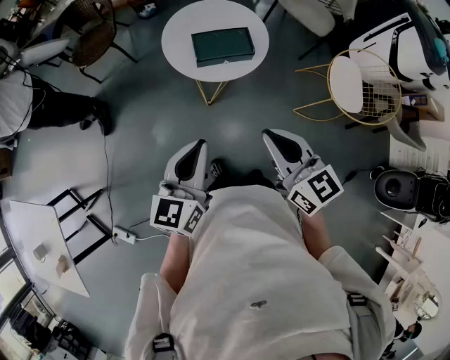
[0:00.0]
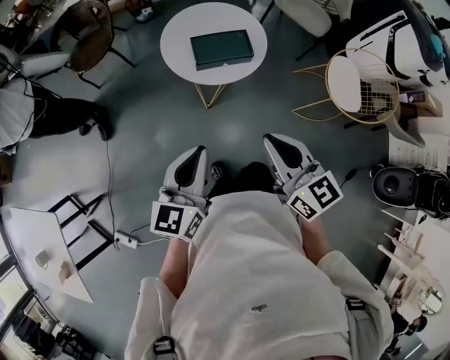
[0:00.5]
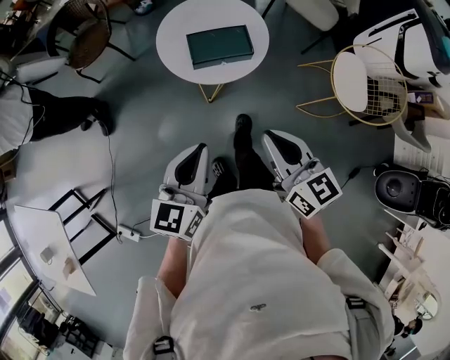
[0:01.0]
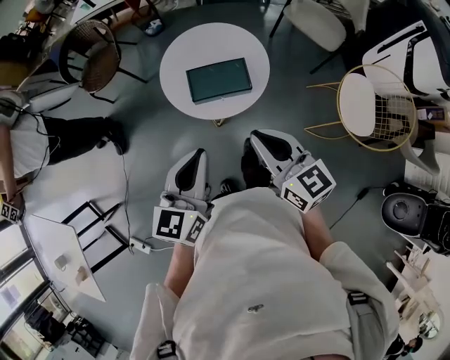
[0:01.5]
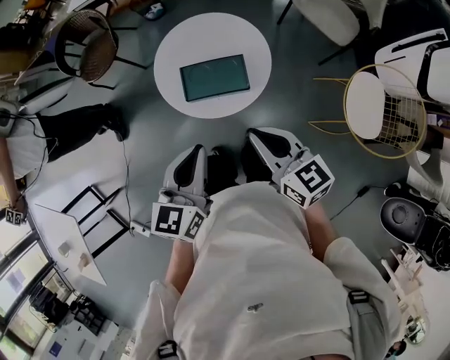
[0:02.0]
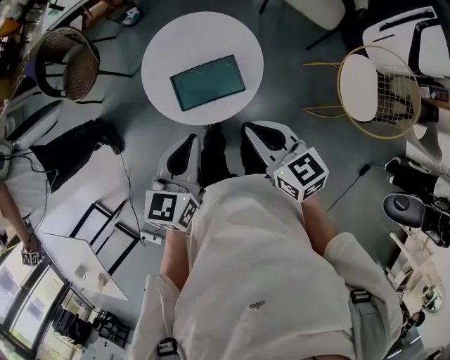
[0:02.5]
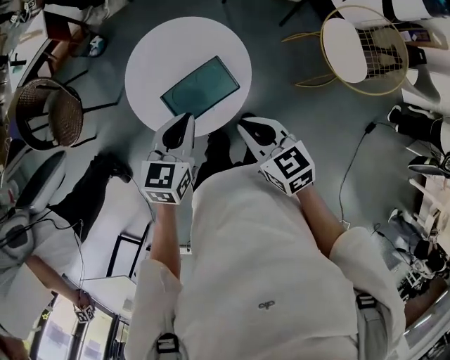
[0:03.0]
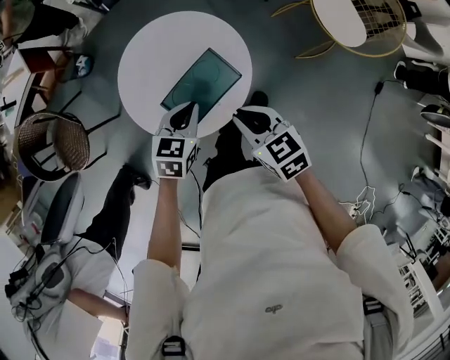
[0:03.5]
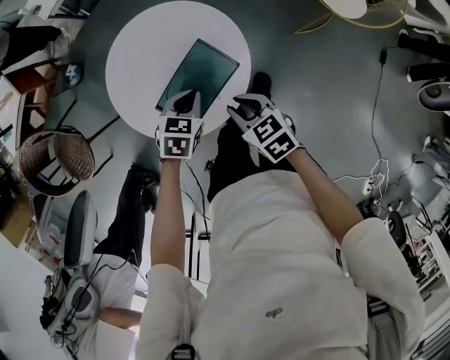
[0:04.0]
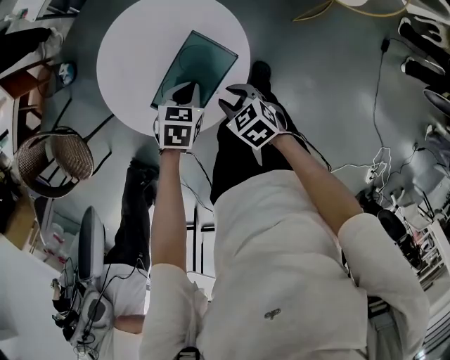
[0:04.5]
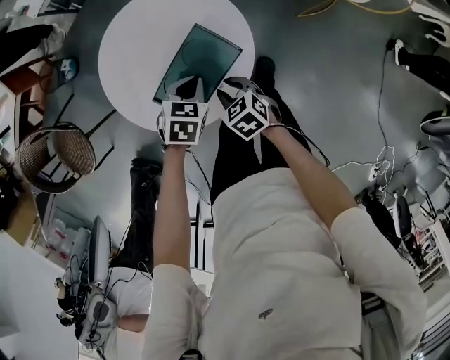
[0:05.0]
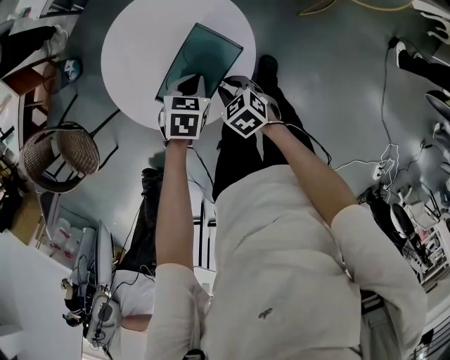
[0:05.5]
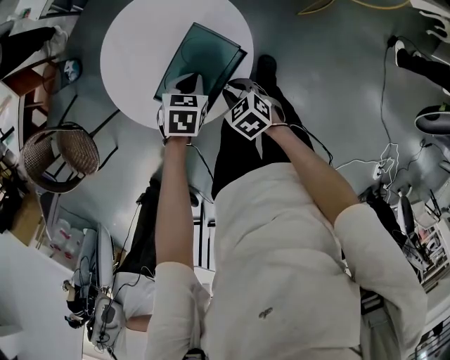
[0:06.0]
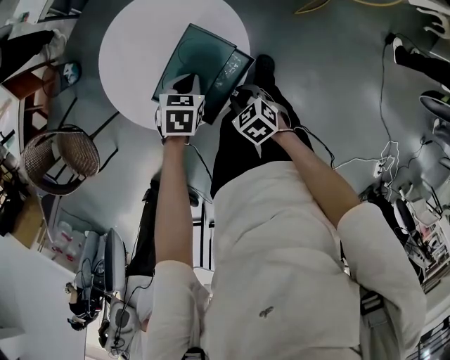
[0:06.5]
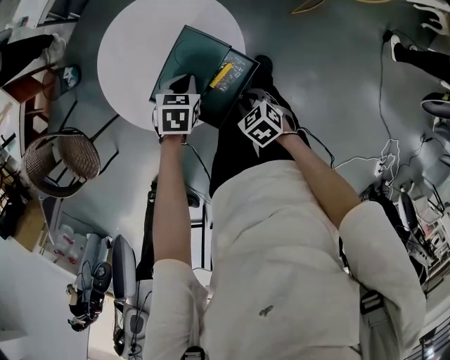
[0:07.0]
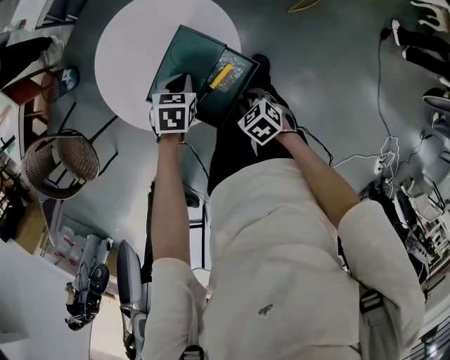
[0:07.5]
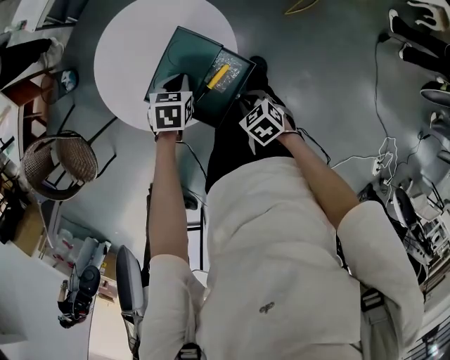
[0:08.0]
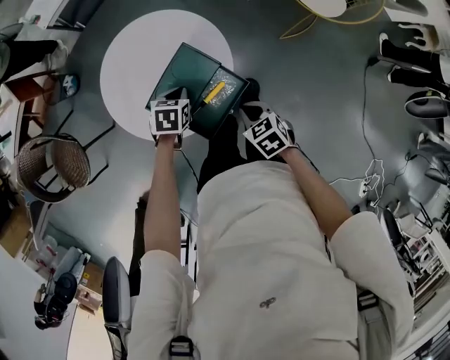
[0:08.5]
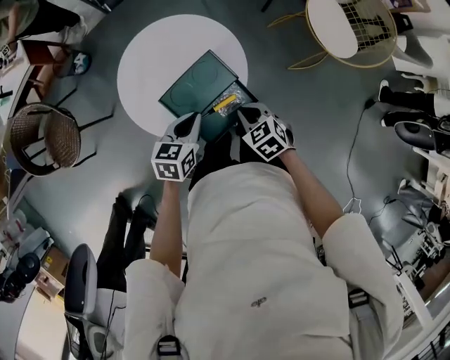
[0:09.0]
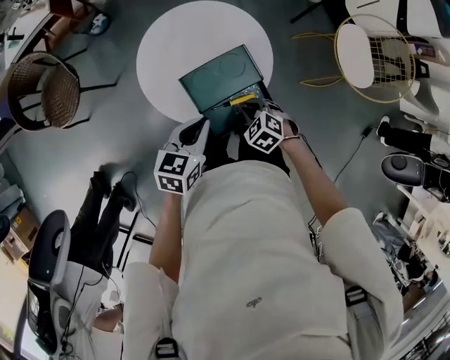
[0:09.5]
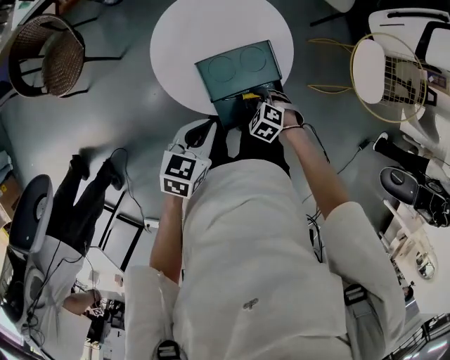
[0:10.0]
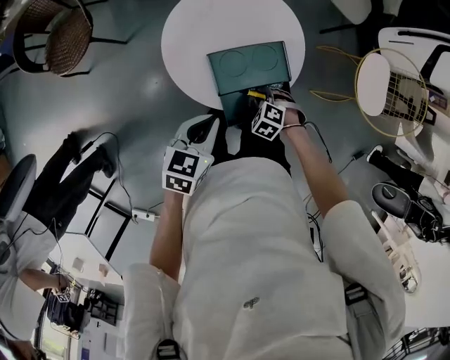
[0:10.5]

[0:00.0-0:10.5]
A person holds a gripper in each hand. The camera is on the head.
0:00.0 to 0:02.0: Both grippers travel together forward and to the right, roughly 20 cm.
0:02.0 to 0:04.0: The two grippers go about 25 cm downward. The left gripper points its fingers roughly 40 degrees further downward; the right gripper points its fingers approximately 30 degrees further downward, and opens its fingers.
0:04.0 to 0:06.5: The right gripper travels downward by approximately 10 cm.
0:06.5 to 0:08.5: The right gripper is displaced to the right and upward by some 10 cm.
0:08.5 to 0:10.5: The left gripper ends up approximately 20 cm from where it was, and turns by approximately 40 degrees; the right gripper shifts by about 15 cm, and rolls counterclockwise, seen from behind, by about 70 degrees.

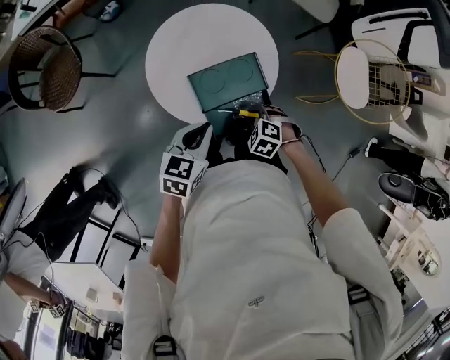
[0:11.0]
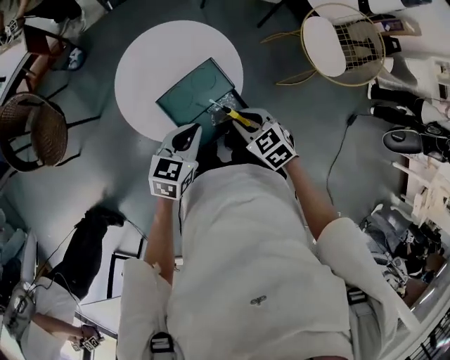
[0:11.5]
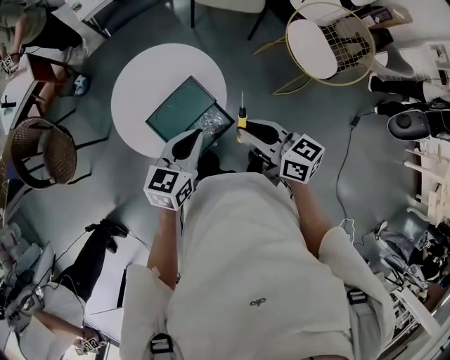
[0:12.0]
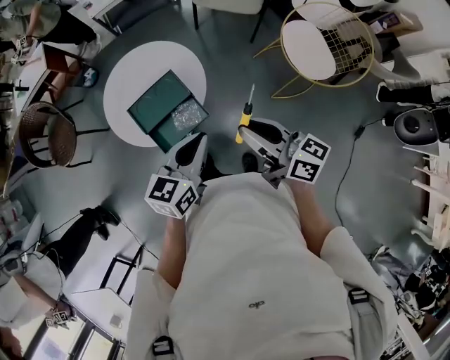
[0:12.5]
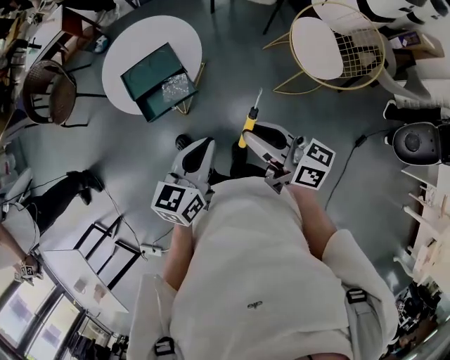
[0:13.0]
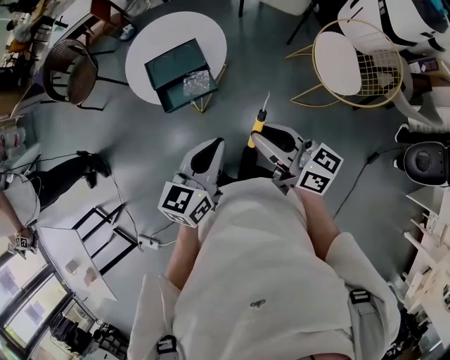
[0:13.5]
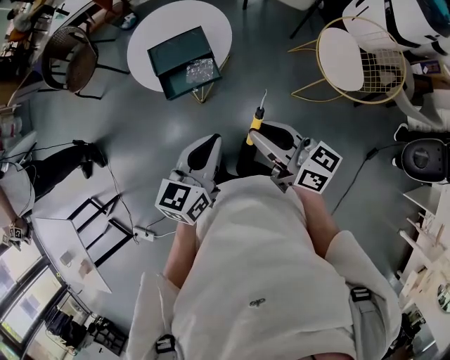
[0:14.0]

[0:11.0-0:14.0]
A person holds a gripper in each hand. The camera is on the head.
0:11.0 to 0:12.5: The left gripper ends up roughly 30 cm from where it was; the right gripper shifts approximately 30 cm upward, and tips its fingers upward by roughly 80 degrees.
0:12.5 to 0:14.0: The two grippers go about 15 cm backward.

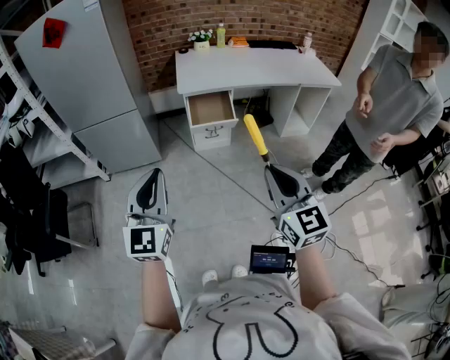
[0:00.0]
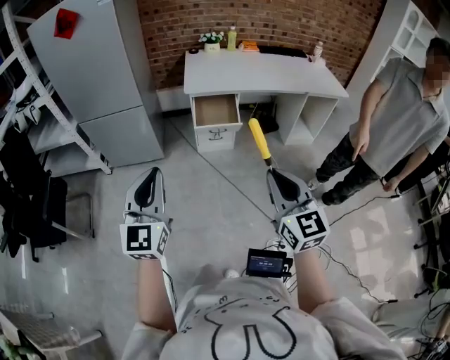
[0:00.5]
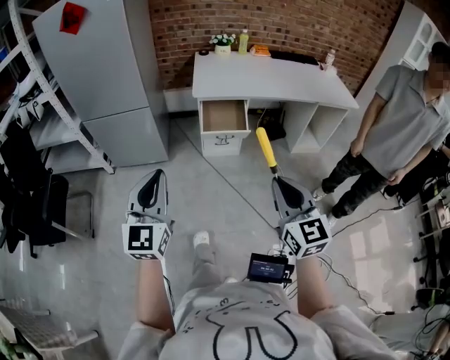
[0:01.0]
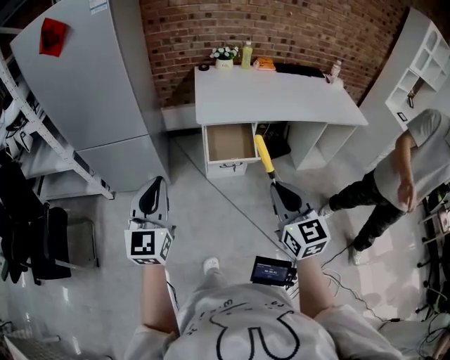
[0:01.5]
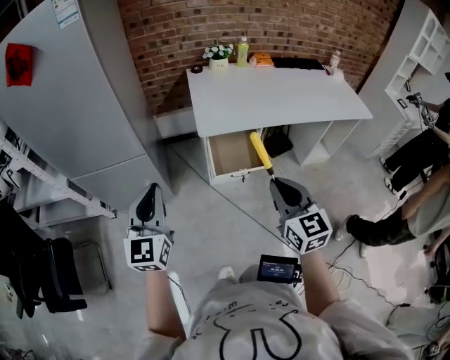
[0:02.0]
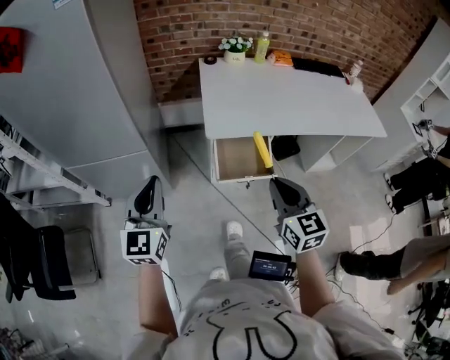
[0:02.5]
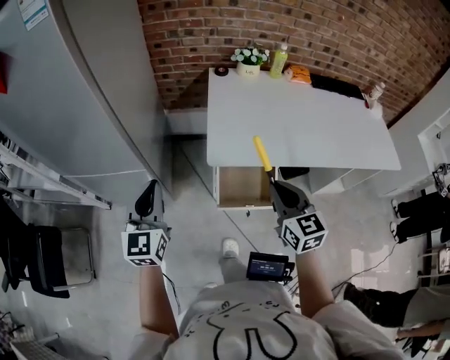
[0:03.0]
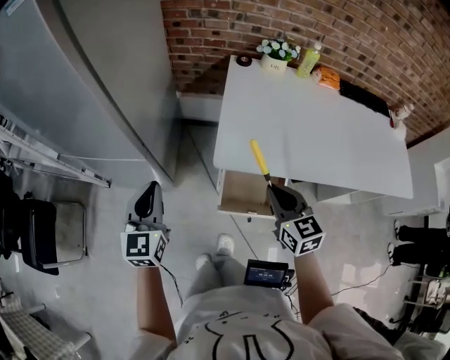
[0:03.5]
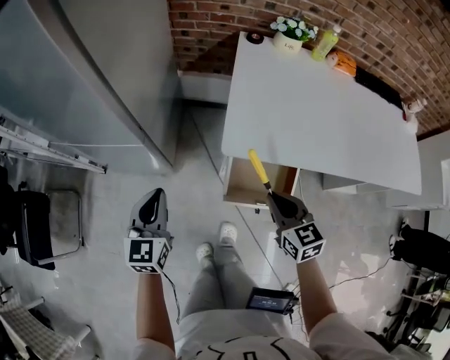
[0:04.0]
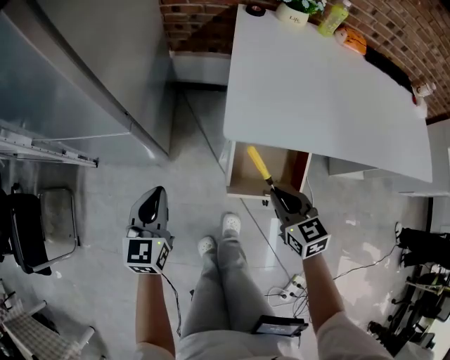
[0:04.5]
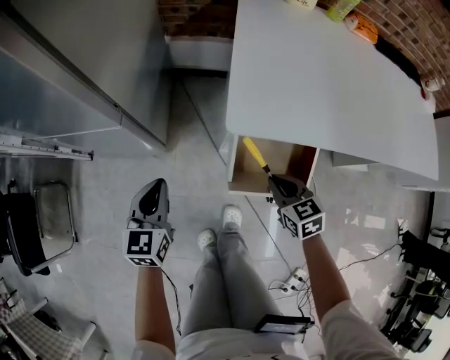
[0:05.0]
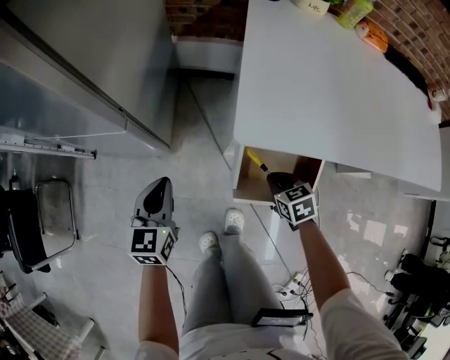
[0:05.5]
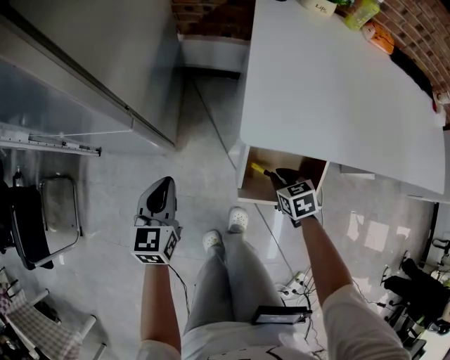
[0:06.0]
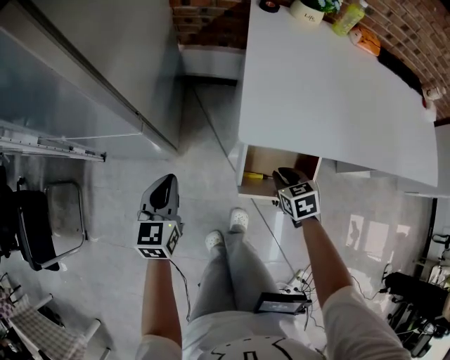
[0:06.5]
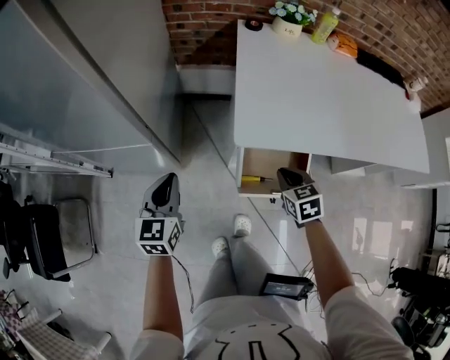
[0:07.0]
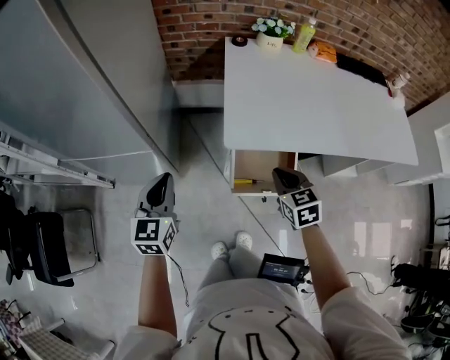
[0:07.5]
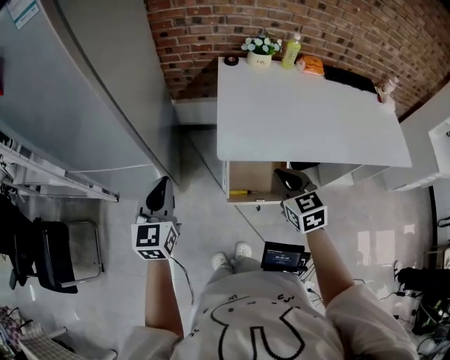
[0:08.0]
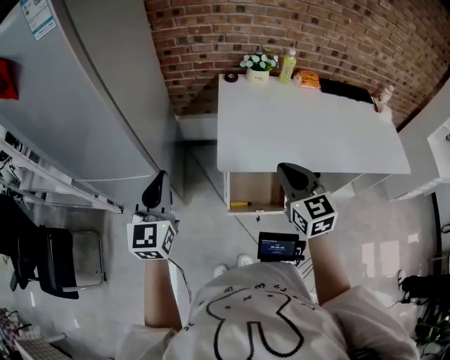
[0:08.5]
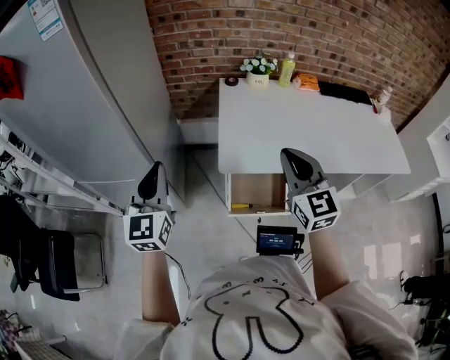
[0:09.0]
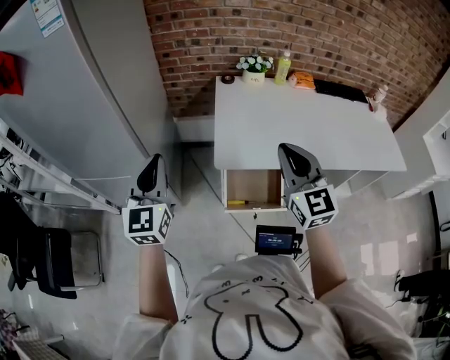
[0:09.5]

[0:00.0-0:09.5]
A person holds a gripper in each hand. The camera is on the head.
0:00.0 to 0:02.0: The grippers both shift forward by roughly 35 cm.
0:02.0 to 0:04.0: The two grippers go approximately 30 cm forward and downward. The left gripper turns by about 30 degrees. Meanwhile the right gripper rotates about 30 degrees.
0:04.0 to 0:05.5: The right gripper goes about 25 cm downward, and swivels roughly 30 degrees; the left gripper moves downward, about 15 cm.
0:05.5 to 0:07.5: The grippers both shift upward by roughly 20 cm. The right gripper rotates approximately 20 degrees.
0:07.5 to 0:09.5: Both grippers move upward, some 20 cm. The left gripper changes its angle by roughly 20 degrees; the right gripper tilts its fingers approximately 40 degrees upward.

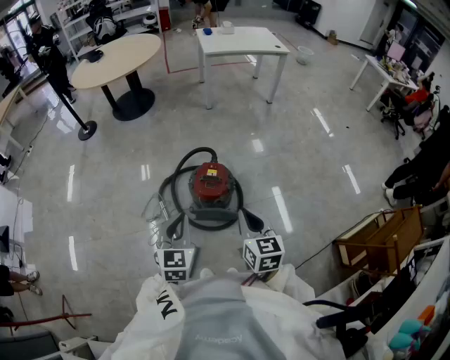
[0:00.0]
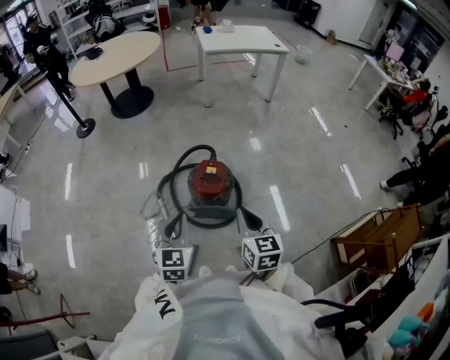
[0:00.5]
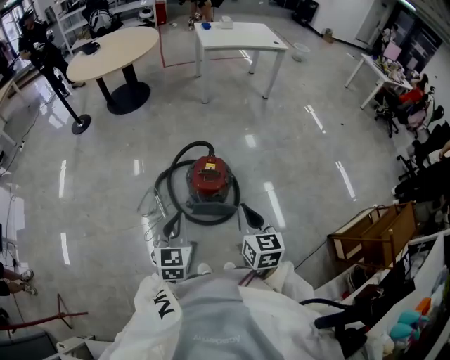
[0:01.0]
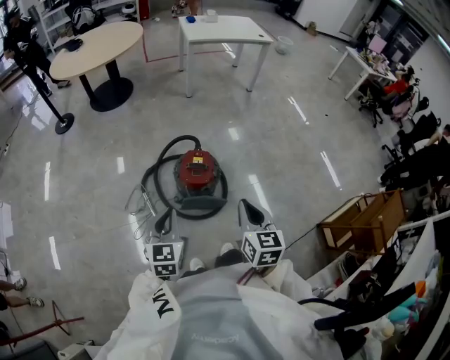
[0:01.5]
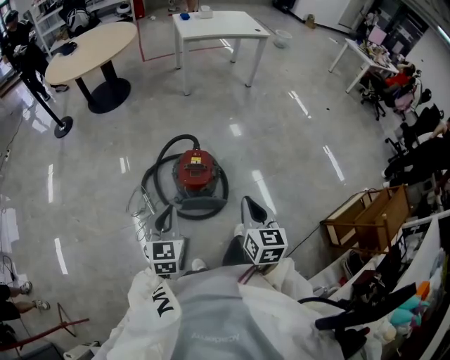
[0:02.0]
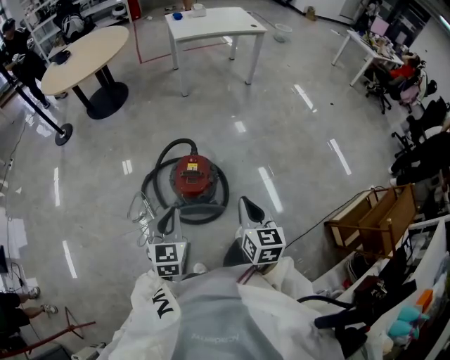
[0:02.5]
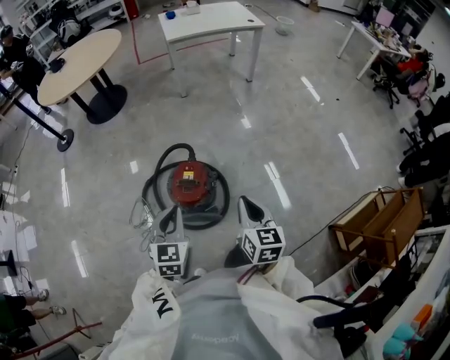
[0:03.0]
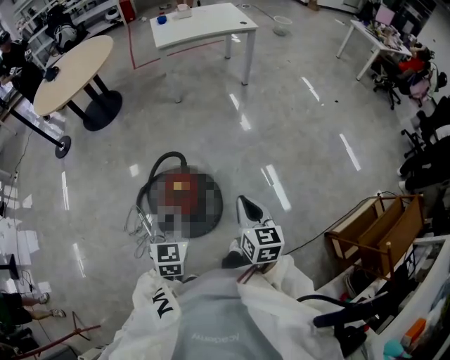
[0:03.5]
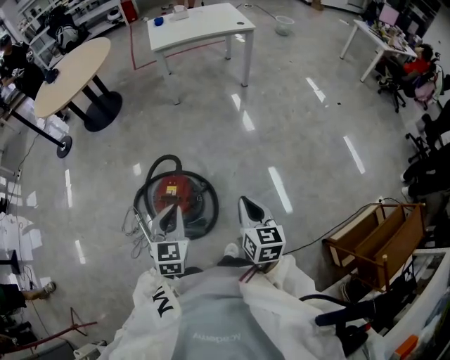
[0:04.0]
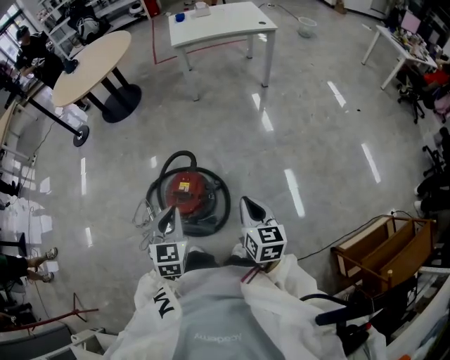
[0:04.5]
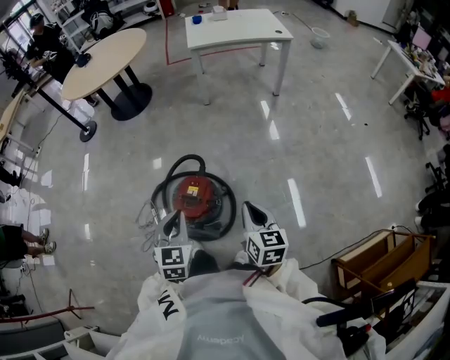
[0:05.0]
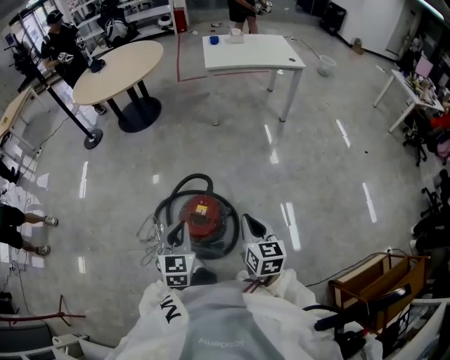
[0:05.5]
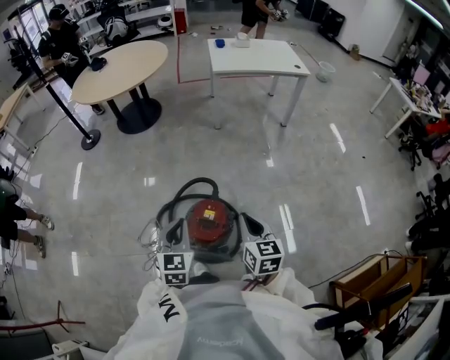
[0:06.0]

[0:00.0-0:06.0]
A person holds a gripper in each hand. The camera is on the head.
0:00.0 to 0:02.0: There are only small adjustments of the grippers.
0:02.0 to 0:04.0: The grippers both shift to the right and forward by approximately 25 cm.
0:04.0 to 0:06.0: The left gripper shifts about 15 cm to the left, while the right gripper travels to the left and forward by some 20 cm.
